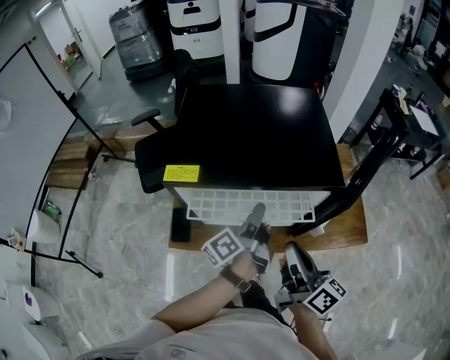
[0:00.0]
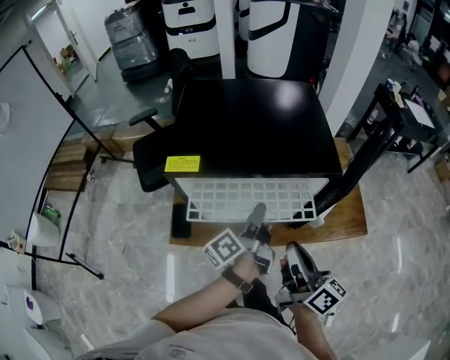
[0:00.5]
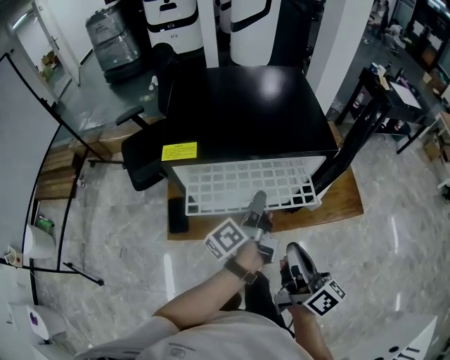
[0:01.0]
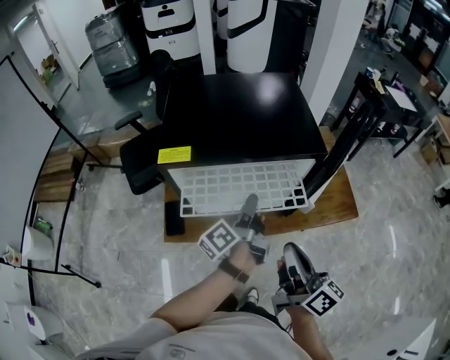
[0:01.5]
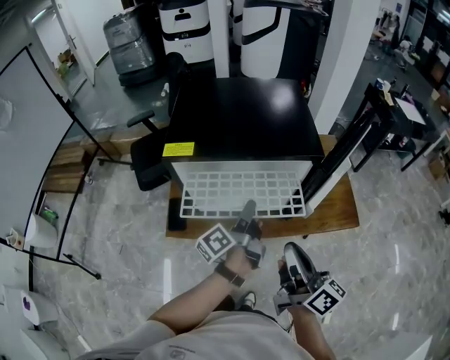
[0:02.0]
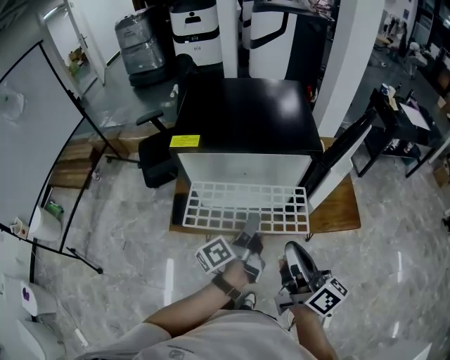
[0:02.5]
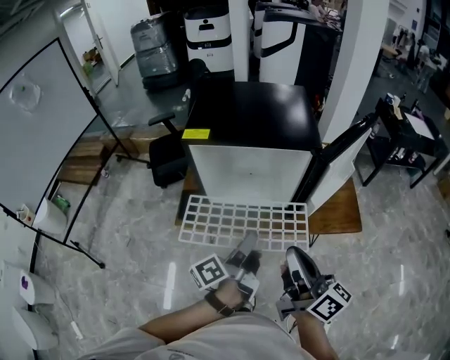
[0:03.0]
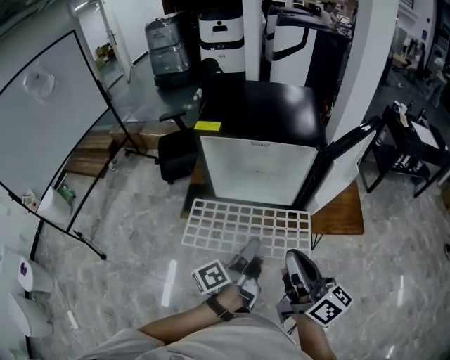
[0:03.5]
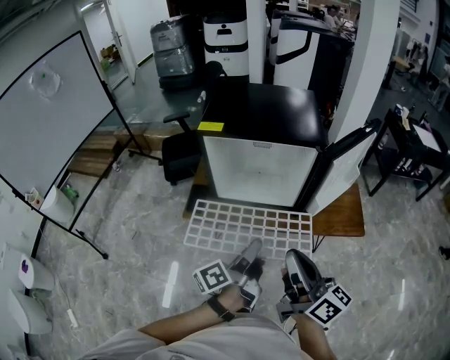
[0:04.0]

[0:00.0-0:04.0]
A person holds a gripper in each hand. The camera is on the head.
0:00.0 to 0:02.0: Both grippers move backward, roughly 10 cm.
0:02.0 to 0:04.0: The right gripper is displaced backward by about 10 cm. The left gripper moves backward, approximately 20 cm.

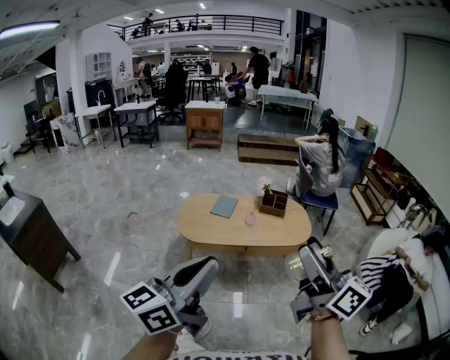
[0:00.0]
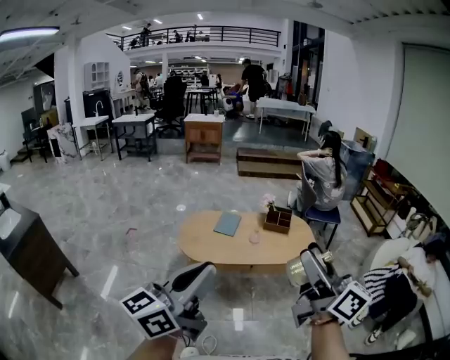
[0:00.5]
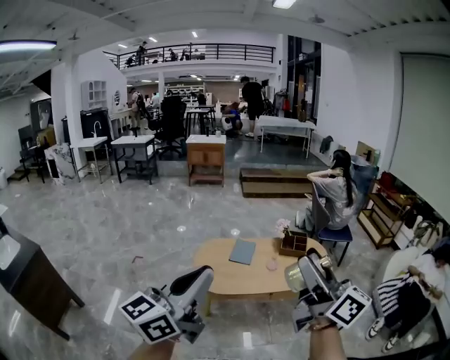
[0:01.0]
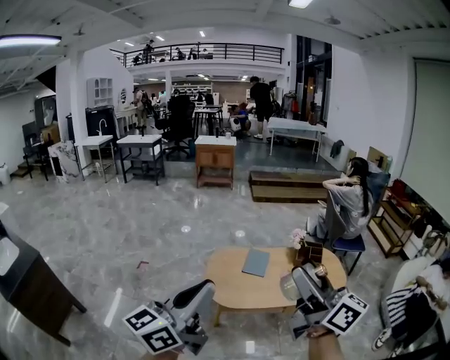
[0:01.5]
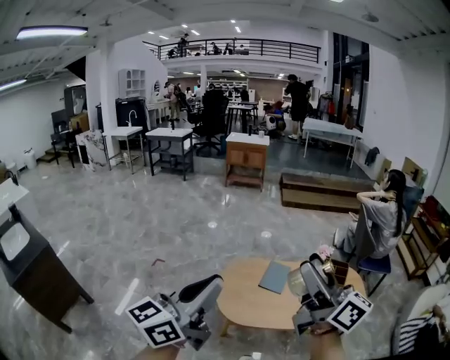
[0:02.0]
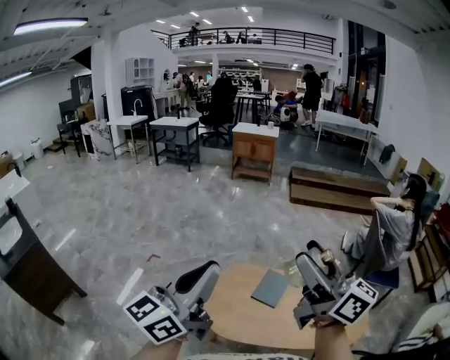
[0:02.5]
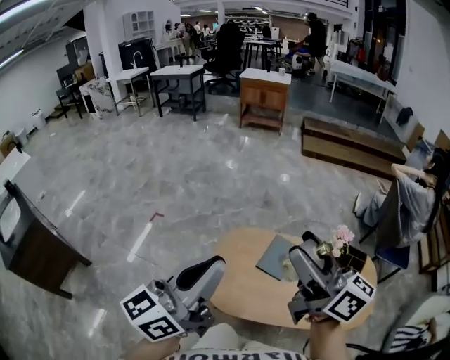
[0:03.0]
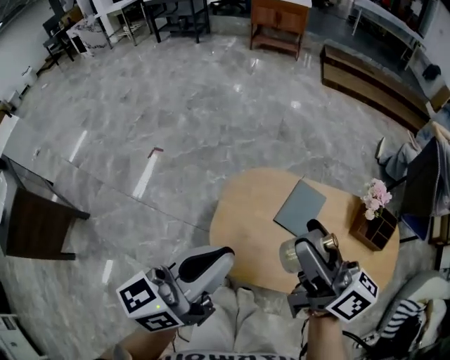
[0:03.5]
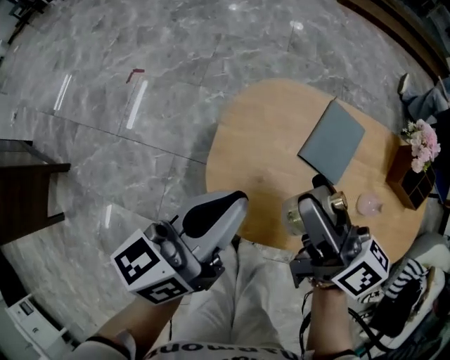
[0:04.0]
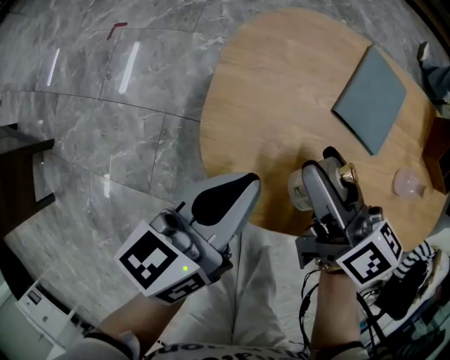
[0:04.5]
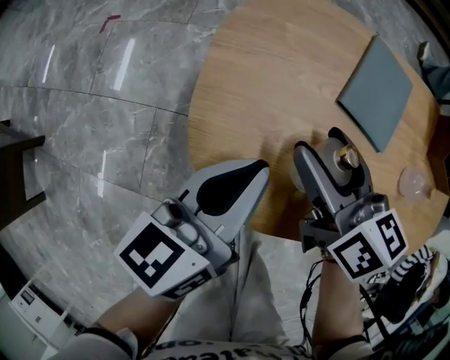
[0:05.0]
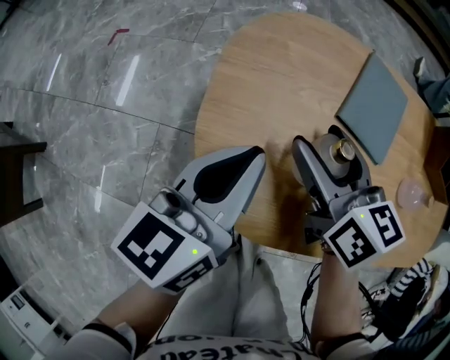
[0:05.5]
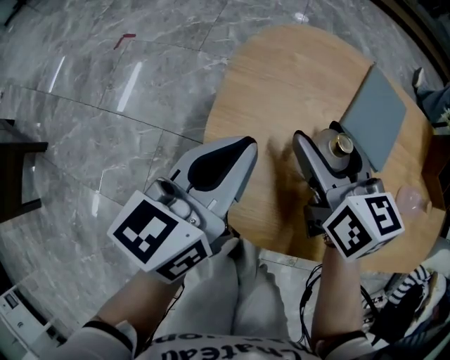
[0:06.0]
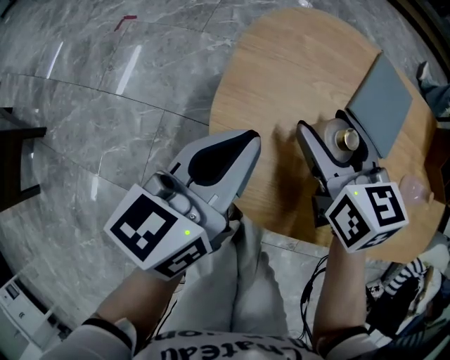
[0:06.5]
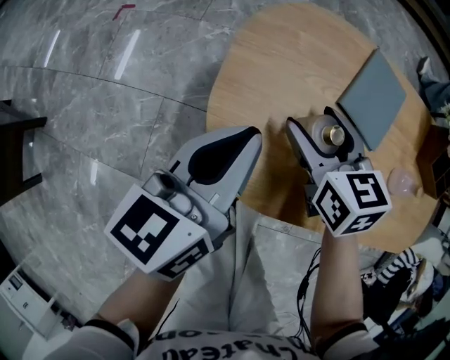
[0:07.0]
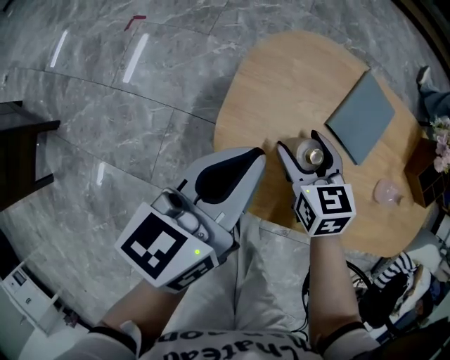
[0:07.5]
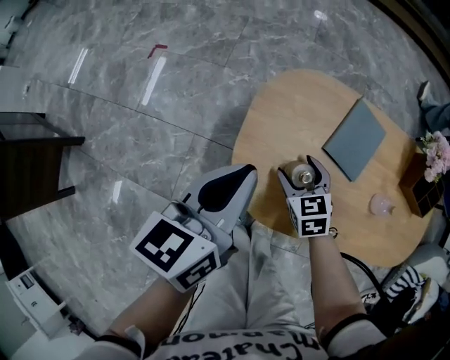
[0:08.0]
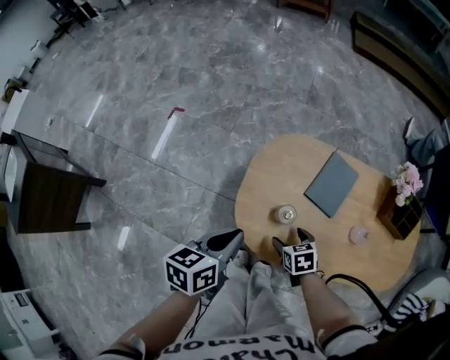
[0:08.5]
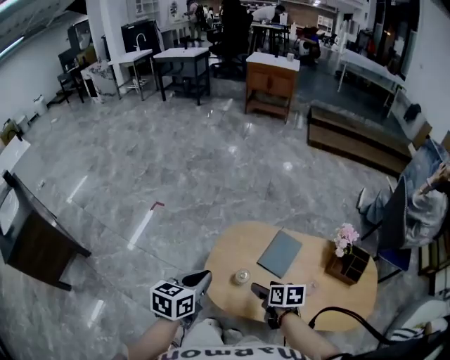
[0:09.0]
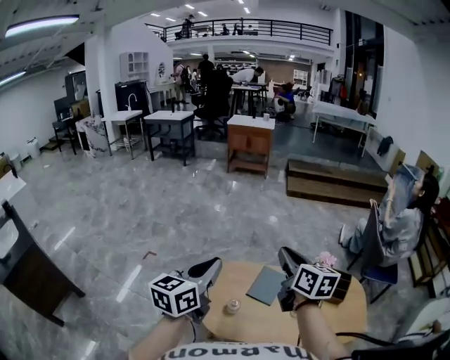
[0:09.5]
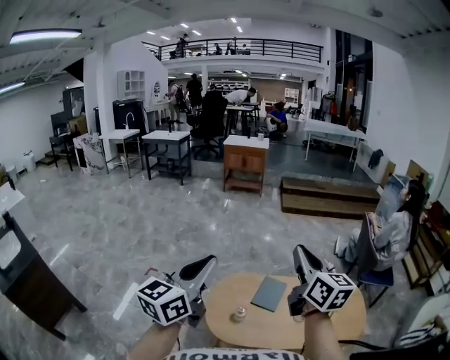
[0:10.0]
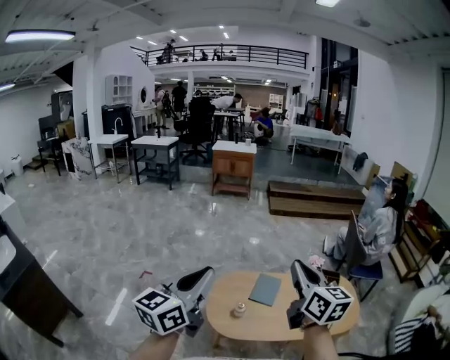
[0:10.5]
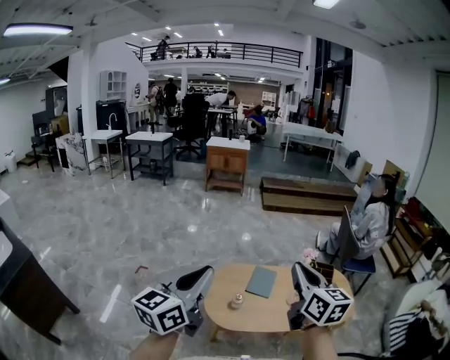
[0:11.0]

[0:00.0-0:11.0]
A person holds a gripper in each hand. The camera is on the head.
0:00.0 to 0:02.0: Both grippers are carried forward and to the left, roughly 50 cm.
0:02.0 to 0:03.5: The grippers both shift forward and downward by some 35 cm. The right gripper changes its angle by roughly 30 degrees.
0:03.5 to 0:05.5: The grippers both shift downward by roughly 40 cm. The right gripper changes its angle by roughly 40 degrees.
0:05.5 to 0:07.5: The right gripper swivels some 20 degrees. Meanwhile the left gripper goes about 10 cm upward.
0:07.5 to 0:09.0: The right gripper is displaced upward and backward by about 20 cm, and rotates about 30 degrees. The left gripper travels upward by some 15 cm.
0:09.0 to 0:11.0: Both grippers travel together upward and backward, roughly 40 cm. The left gripper tilts its fingers roughly 40 degrees upward, while the right gripper points its fingers some 50 degrees further upward, and closes its fingers.

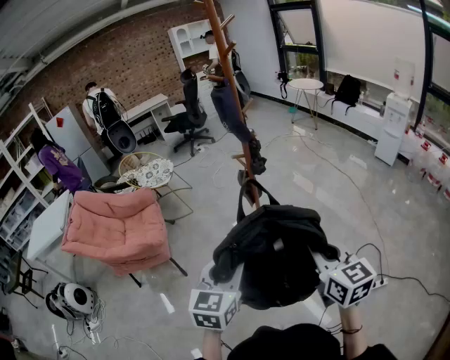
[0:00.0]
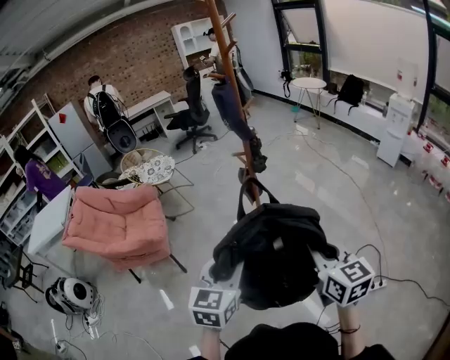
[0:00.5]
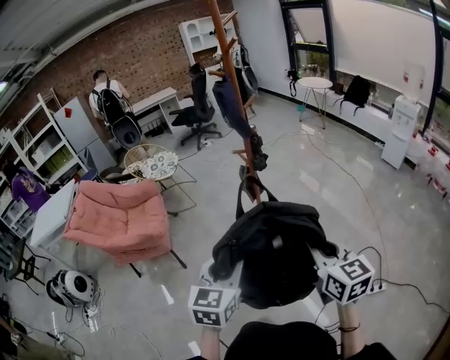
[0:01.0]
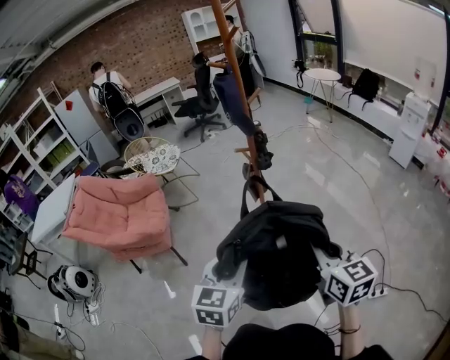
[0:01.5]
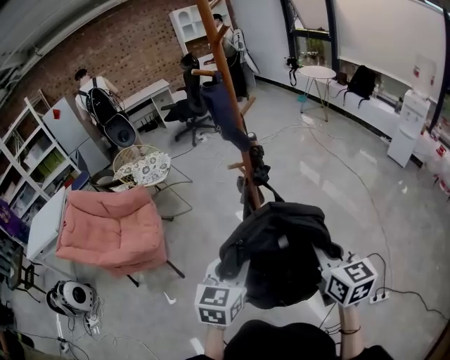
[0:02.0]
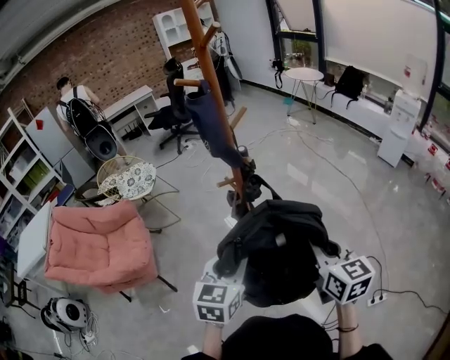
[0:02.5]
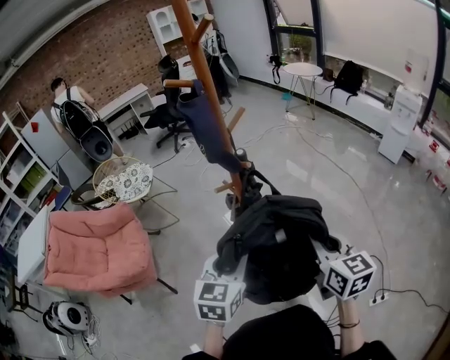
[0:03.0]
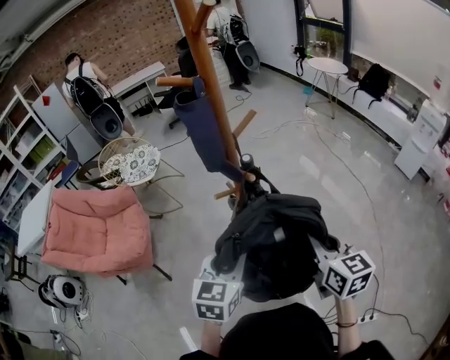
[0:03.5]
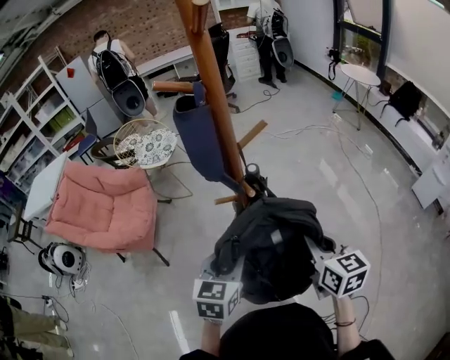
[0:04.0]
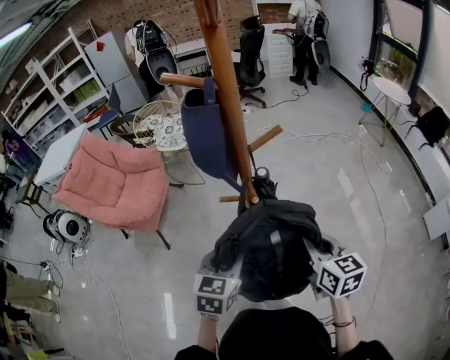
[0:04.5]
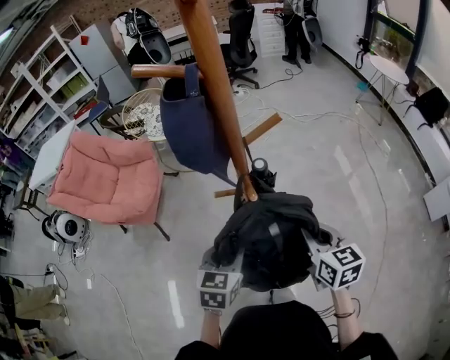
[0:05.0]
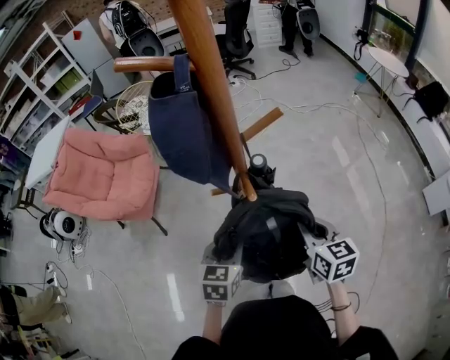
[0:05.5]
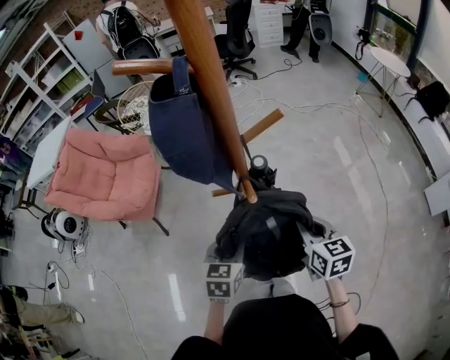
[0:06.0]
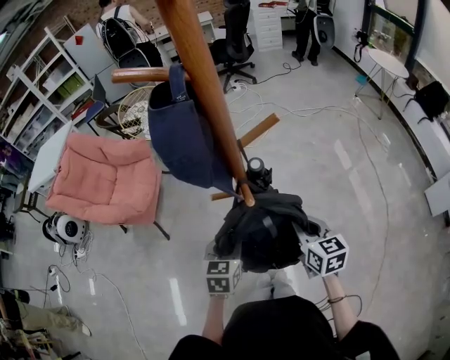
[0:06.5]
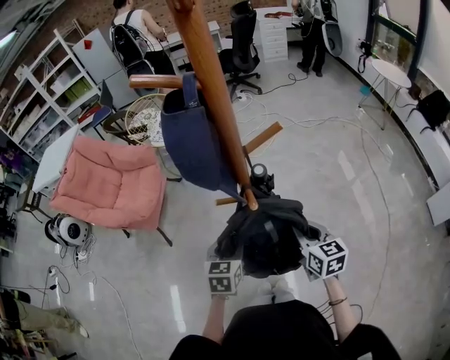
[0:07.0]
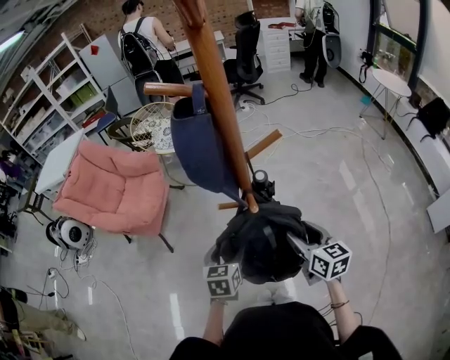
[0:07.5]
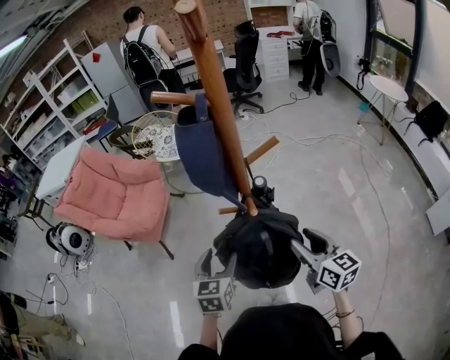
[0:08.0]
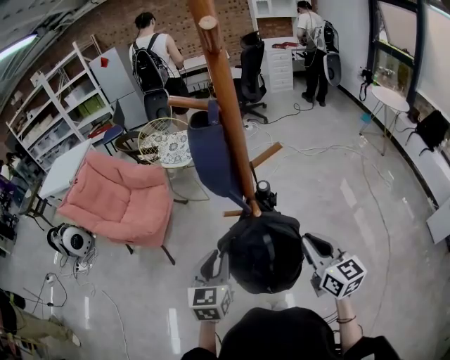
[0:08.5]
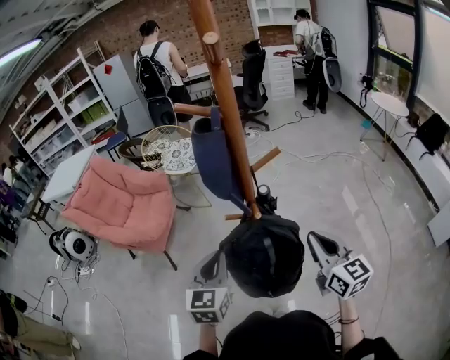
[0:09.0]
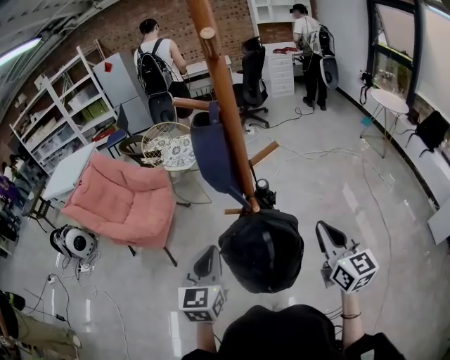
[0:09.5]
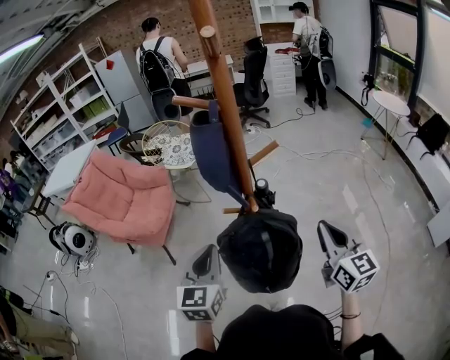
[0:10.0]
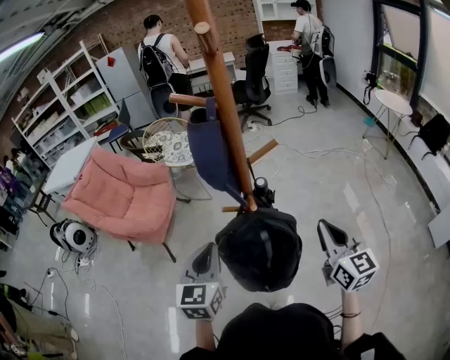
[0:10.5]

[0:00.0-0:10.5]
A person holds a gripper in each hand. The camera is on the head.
0:00.0 to 0:02.0: The two grippers go some 15 cm forward.
0:02.0 to 0:04.0: Both grippers move forward, approximately 25 cm.
0:04.0 to 0:06.5: The left gripper is displaced downward and forward by roughly 15 cm. The right gripper moves forward and downward, roughly 15 cm.
0:06.5 to 0:08.5: The two grippers go roughly 10 cm upward. The right gripper opens, then closes once more. The left gripper opens, then closes again.
0:08.5 to 0:10.5: The left gripper travels upward by about 5 cm; the right gripper is displaced to the right by some 5 cm.

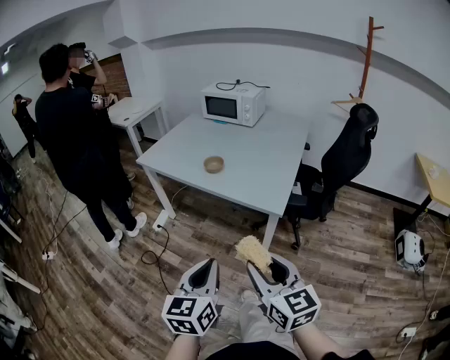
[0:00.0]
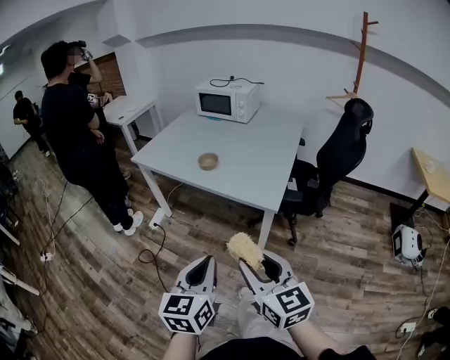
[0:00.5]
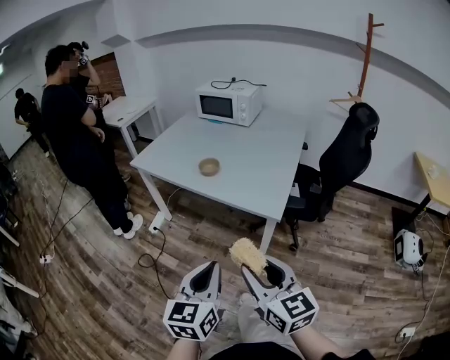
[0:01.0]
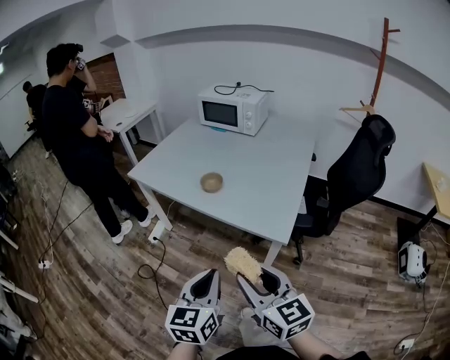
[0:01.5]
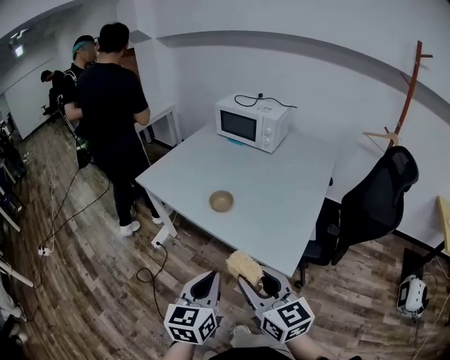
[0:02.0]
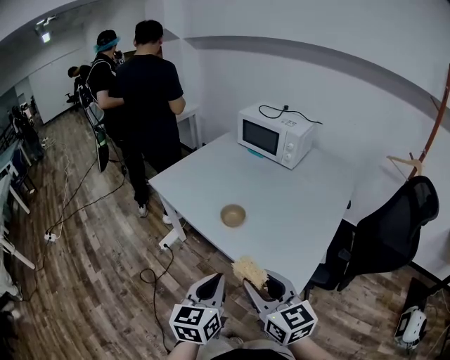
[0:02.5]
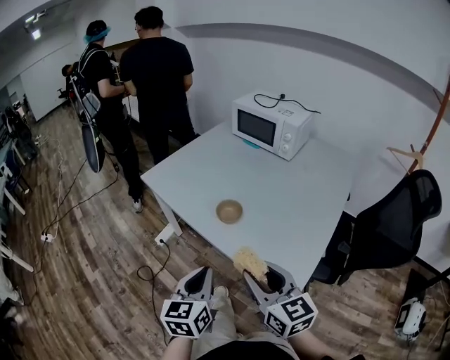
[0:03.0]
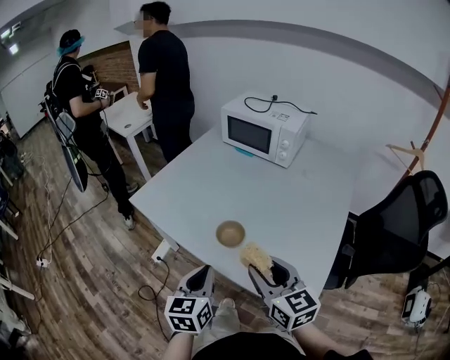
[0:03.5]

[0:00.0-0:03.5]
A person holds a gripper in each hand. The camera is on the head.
0:00.0 to 0:02.0: The grippers both shift forward by approximately 25 cm.
0:02.0 to 0:03.5: Both grippers move forward, about 20 cm.
